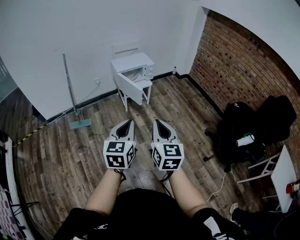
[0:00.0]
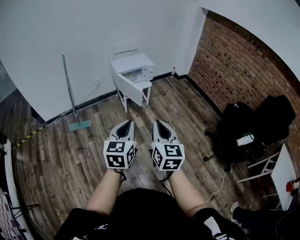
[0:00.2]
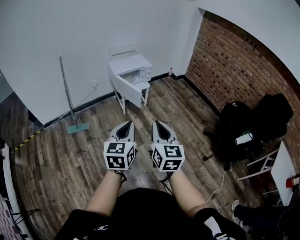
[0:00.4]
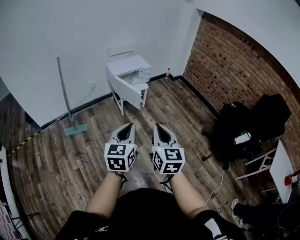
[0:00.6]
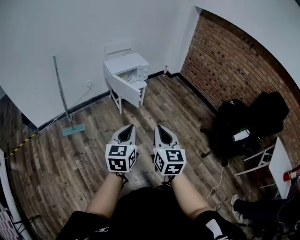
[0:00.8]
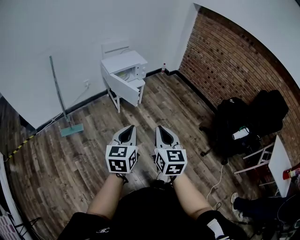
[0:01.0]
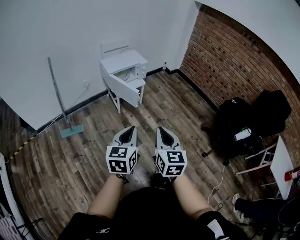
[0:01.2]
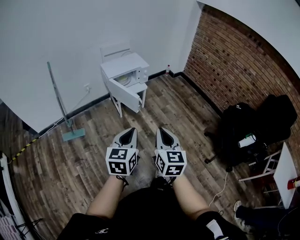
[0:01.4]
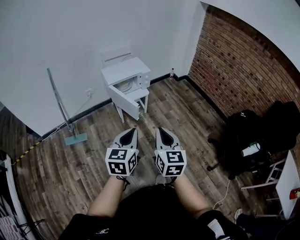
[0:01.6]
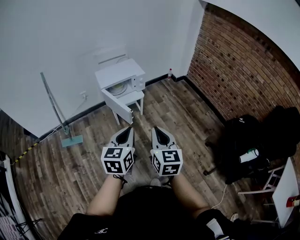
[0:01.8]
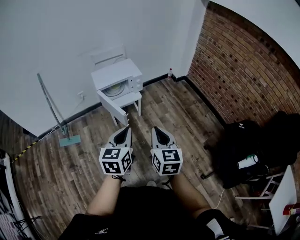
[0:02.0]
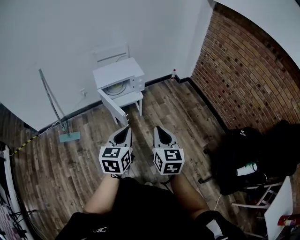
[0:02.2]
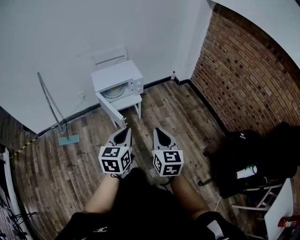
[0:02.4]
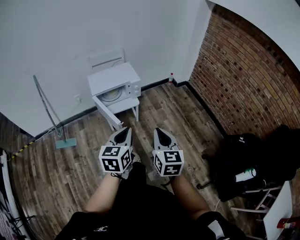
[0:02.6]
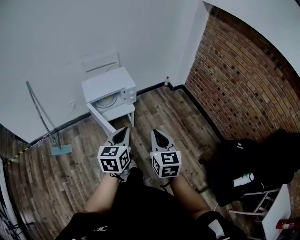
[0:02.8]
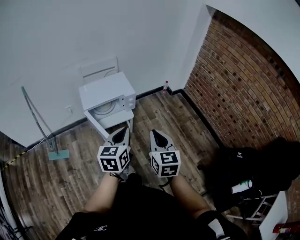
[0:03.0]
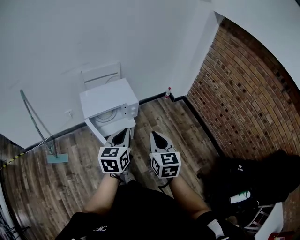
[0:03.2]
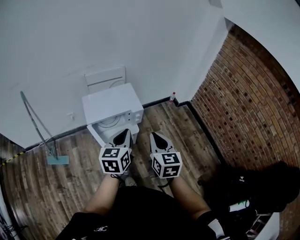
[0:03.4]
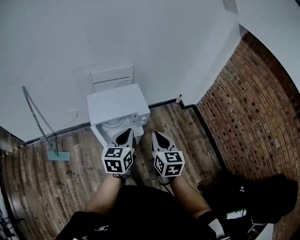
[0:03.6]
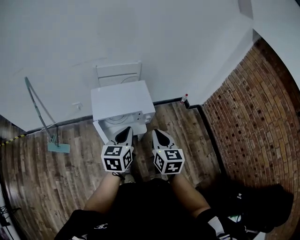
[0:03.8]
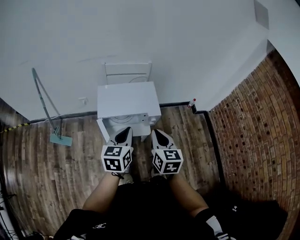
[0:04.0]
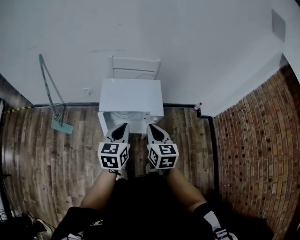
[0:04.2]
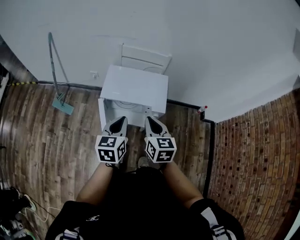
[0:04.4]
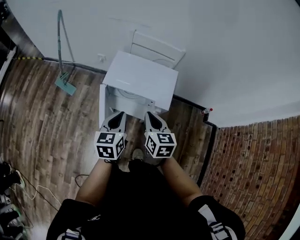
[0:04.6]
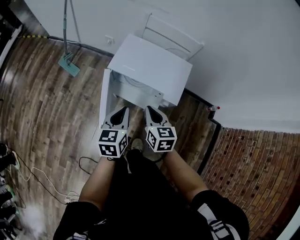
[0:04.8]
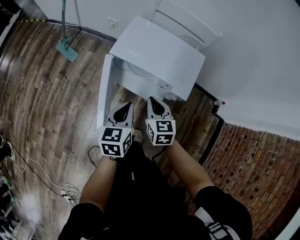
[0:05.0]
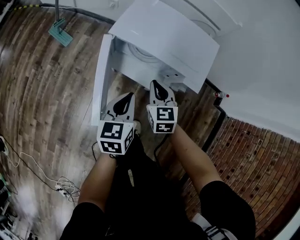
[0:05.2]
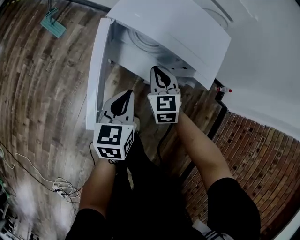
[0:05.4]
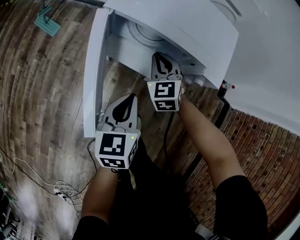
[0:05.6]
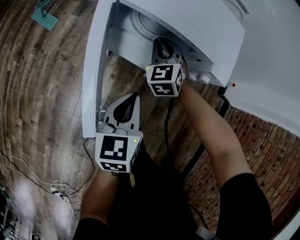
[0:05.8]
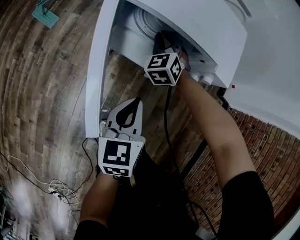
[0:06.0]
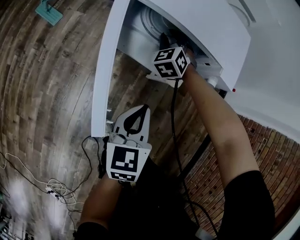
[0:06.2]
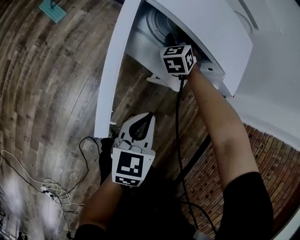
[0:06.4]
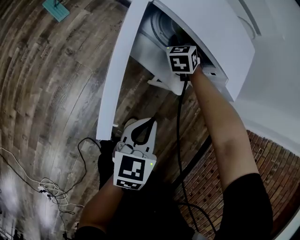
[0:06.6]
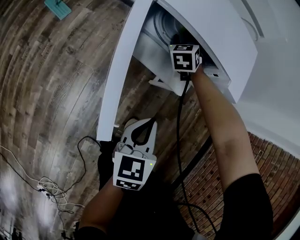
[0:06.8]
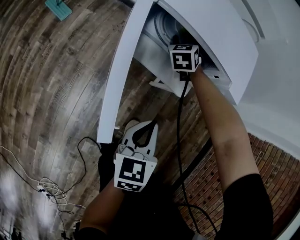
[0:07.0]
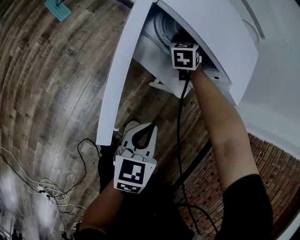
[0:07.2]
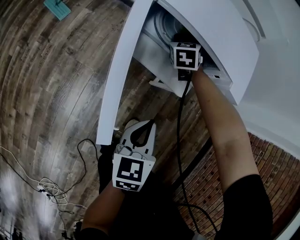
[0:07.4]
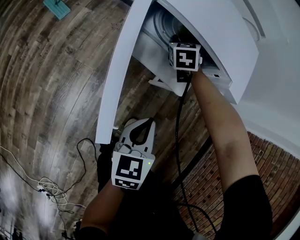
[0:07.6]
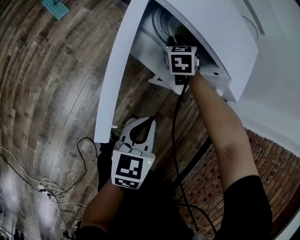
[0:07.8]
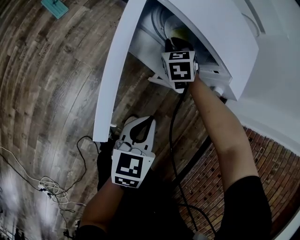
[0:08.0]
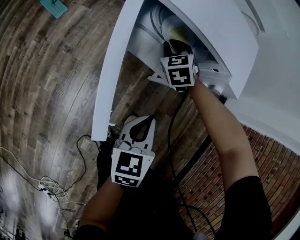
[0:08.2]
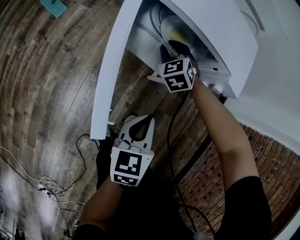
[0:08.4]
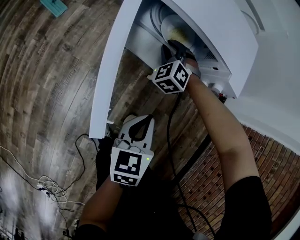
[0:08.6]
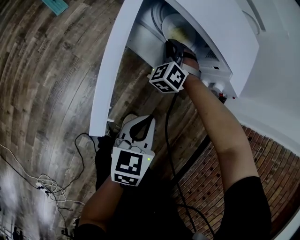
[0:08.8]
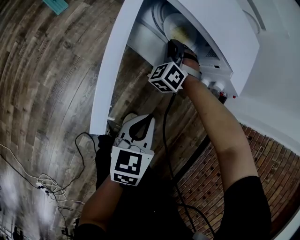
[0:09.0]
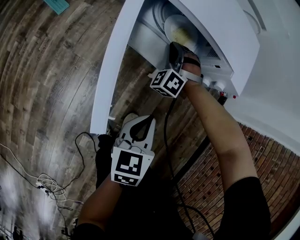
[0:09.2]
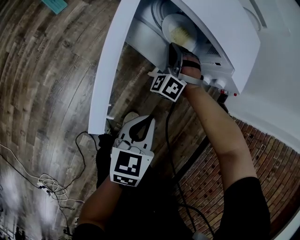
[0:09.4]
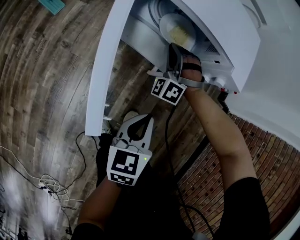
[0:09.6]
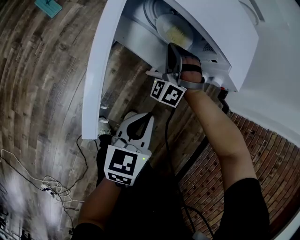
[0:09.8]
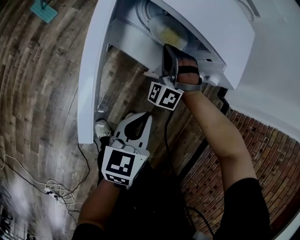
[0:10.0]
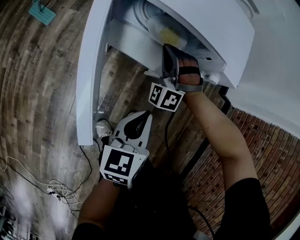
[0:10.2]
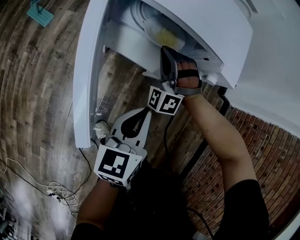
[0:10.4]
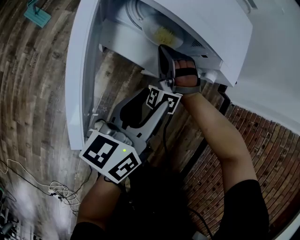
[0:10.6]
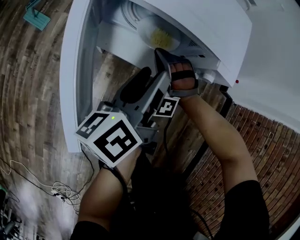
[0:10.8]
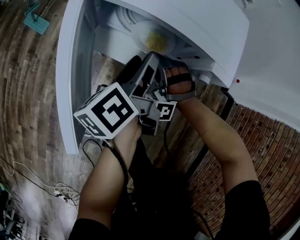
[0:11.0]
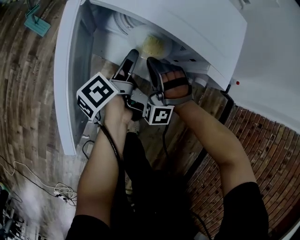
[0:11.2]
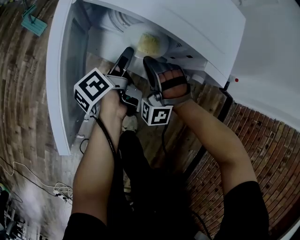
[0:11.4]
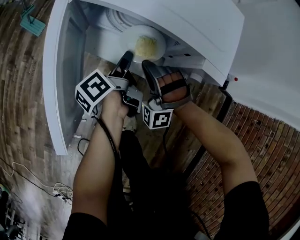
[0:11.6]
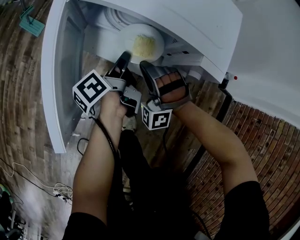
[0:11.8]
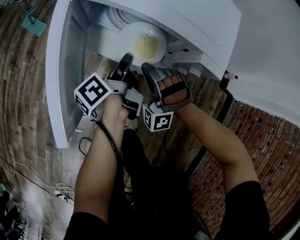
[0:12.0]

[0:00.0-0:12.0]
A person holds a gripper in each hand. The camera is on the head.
0:00.0 to 0:01.6: The two grippers go approximately 20 cm forward.
0:01.6 to 0:03.0: Both grippers travel together forward, roughly 35 cm.
0:03.0 to 0:04.4: The right gripper changes place by about 35 cm, and changes its angle by roughly 30 degrees, while the left gripper moves some 25 cm, and swivels about 30 degrees.
0:04.4 to 0:06.0: The left gripper heads downward, covering approximately 35 cm. Meanwhile the right gripper shifts roughly 40 cm downward and forward, and rolls counterclockwise, seen from behind, by about 60 degrees.
0:06.0 to 0:07.6: The left gripper changes place by approximately 5 cm; the right gripper changes place by about 5 cm, and turns by about 20 degrees.
0:07.6 to 0:09.0: The right gripper goes approximately 5 cm backward, and rotates around the line of its fingers by some 50 degrees, counterclockwise from behind.
0:09.0 to 0:10.4: The left gripper moves about 5 cm. The right gripper moves upward, about 5 cm, and turns by some 20 degrees.
0:10.4 to 0:12.0: The right gripper shifts approximately 5 cm backward. The left gripper is displaced forward and downward by about 15 cm, rolls counterclockwise, seen from behind, by roughly 60 degrees, and opens, then closes again.

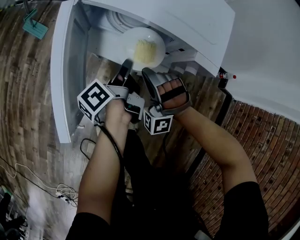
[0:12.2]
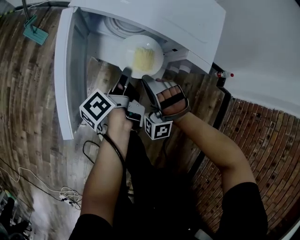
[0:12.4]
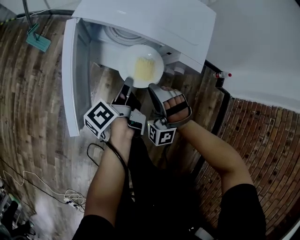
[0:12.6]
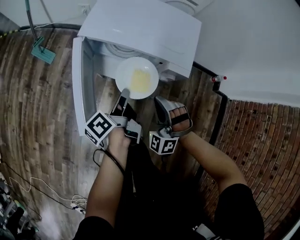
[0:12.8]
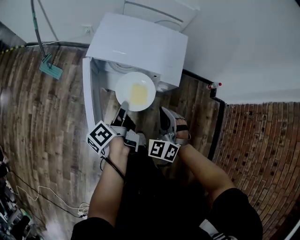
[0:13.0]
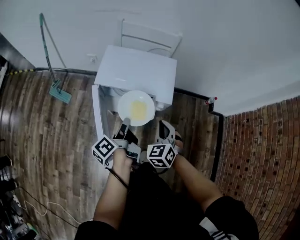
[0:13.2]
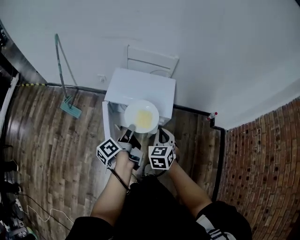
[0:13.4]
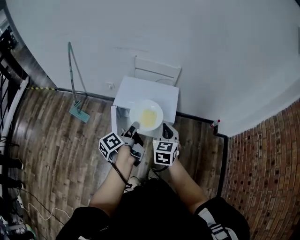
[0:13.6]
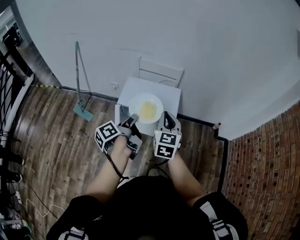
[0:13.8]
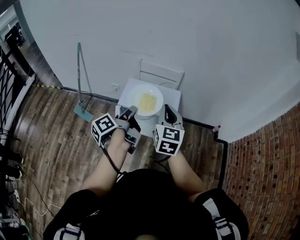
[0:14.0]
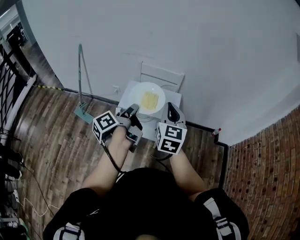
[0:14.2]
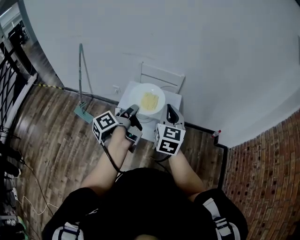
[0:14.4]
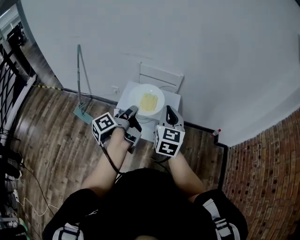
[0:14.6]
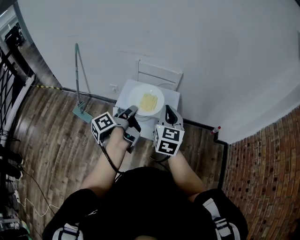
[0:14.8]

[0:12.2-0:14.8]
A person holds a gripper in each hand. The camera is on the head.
0:12.2 to 0:13.4: The two grippers go some 30 cm upward. The right gripper rotates around the line of its fingers by about 80 degrees, clockwise from behind.
0:13.4 to 0:14.8: The two grippers go some 15 cm upward. The right gripper turns by about 30 degrees.

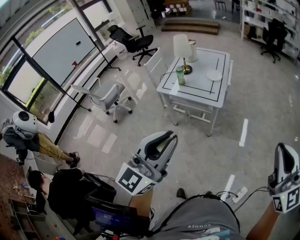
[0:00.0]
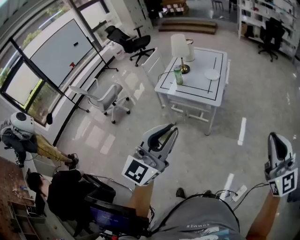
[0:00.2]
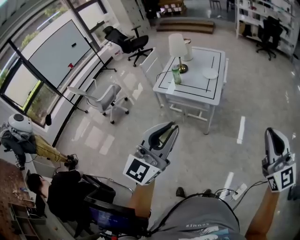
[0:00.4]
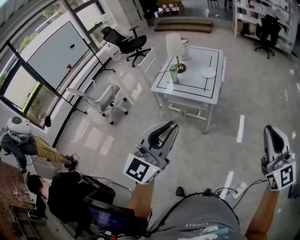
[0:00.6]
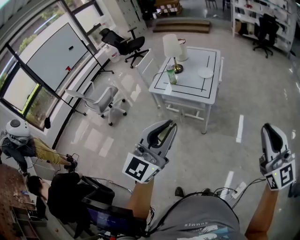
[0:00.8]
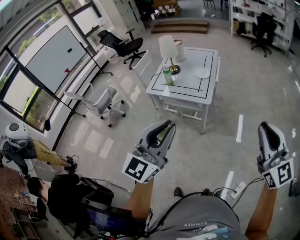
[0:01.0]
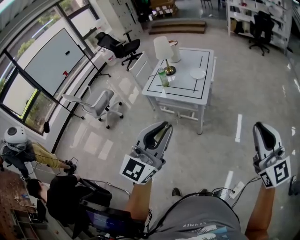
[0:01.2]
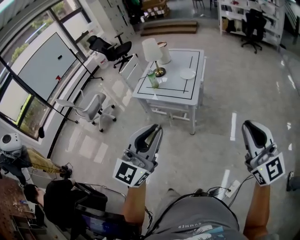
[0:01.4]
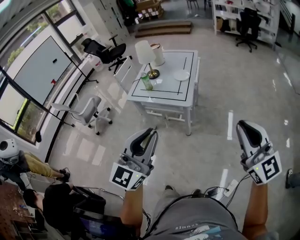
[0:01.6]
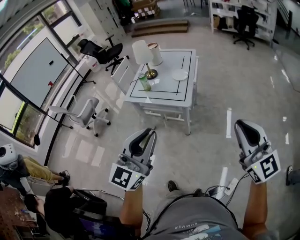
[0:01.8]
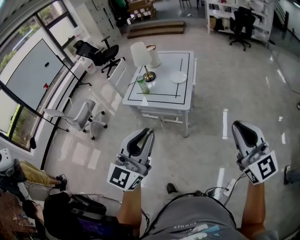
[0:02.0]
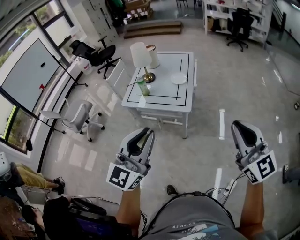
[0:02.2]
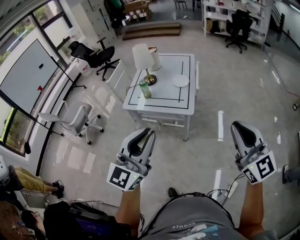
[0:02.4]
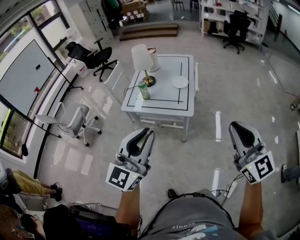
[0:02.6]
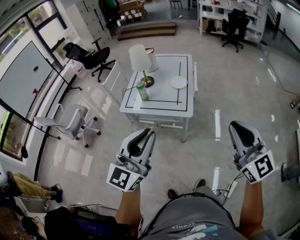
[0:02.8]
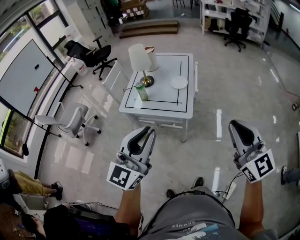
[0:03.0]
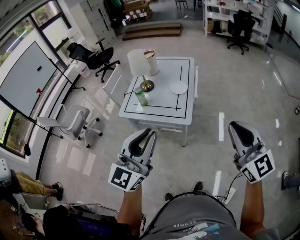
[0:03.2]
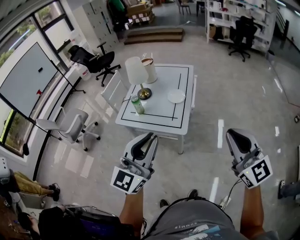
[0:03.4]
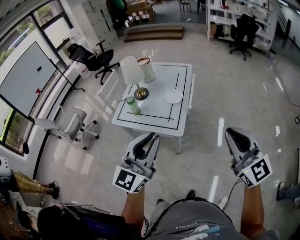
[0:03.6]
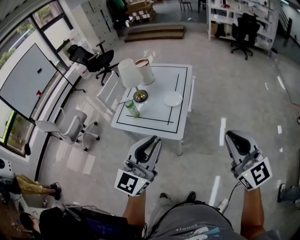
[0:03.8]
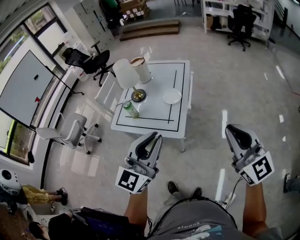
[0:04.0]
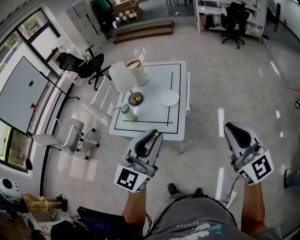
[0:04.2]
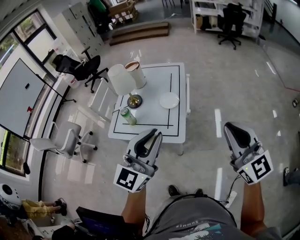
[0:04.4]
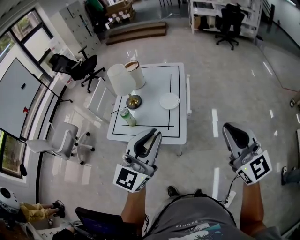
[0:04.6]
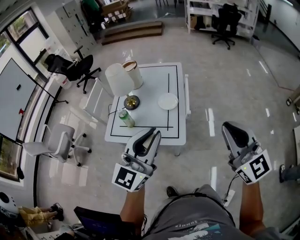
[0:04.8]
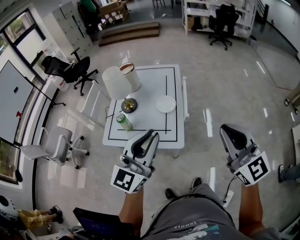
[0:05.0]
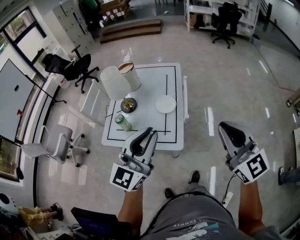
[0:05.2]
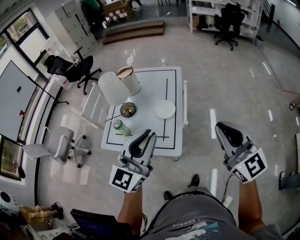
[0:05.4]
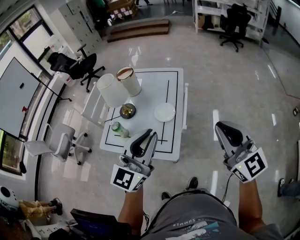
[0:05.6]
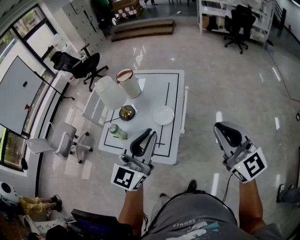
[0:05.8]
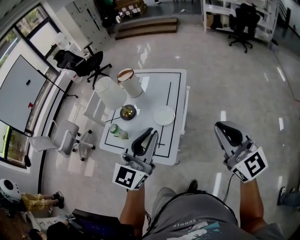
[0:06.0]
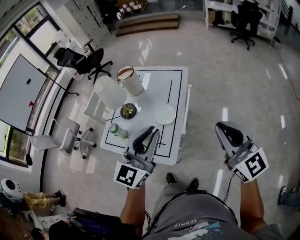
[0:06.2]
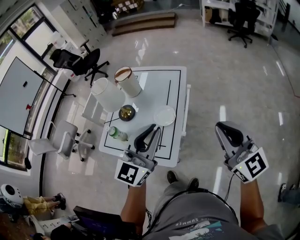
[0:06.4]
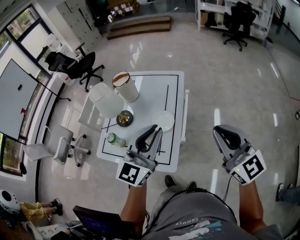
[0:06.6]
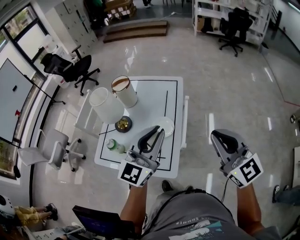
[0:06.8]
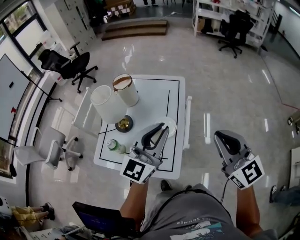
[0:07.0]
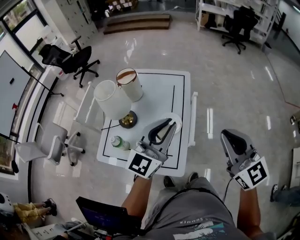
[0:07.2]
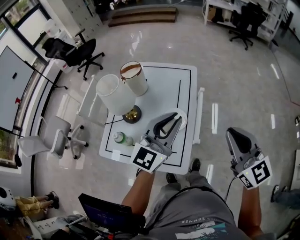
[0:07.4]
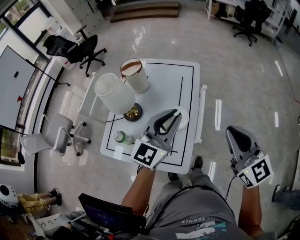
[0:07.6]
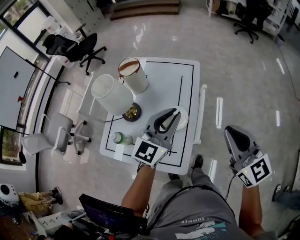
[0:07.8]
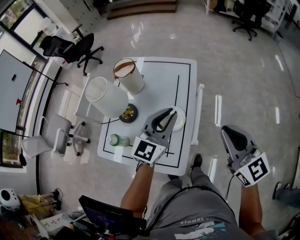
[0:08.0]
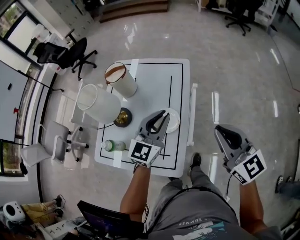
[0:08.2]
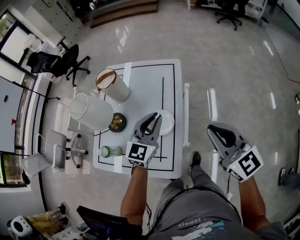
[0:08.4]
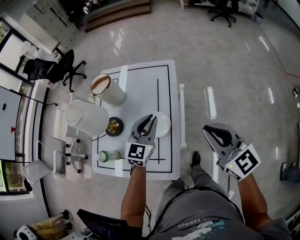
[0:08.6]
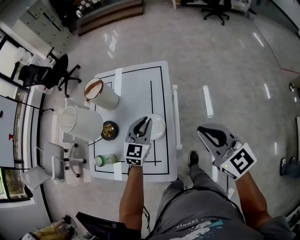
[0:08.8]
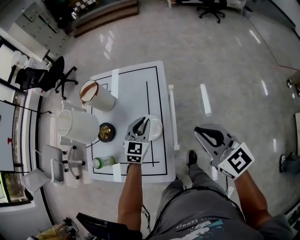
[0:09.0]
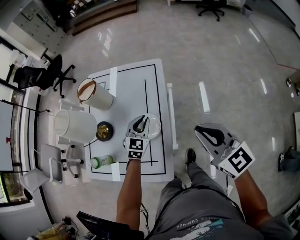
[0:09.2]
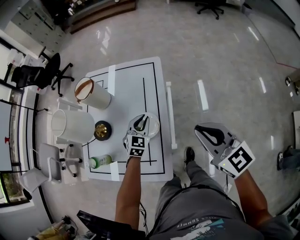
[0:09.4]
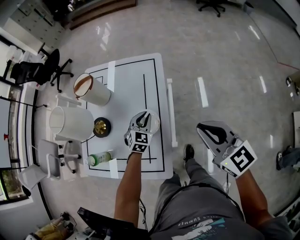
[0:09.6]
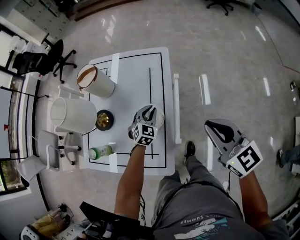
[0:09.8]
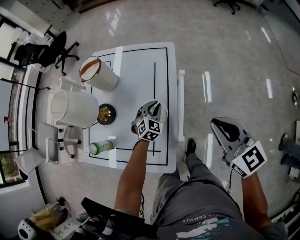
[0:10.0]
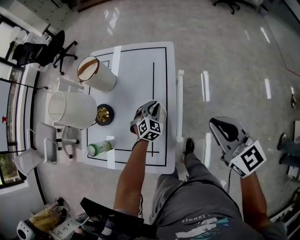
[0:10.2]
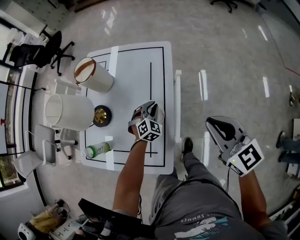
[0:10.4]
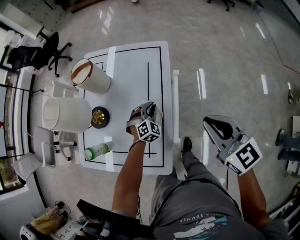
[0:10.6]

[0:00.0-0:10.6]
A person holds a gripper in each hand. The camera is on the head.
0:00.0 to 0:01.6: The left gripper goes some 10 cm to the right. Meanwhile the right gripper travels forward, downward and to the right by about 10 cm.
0:01.6 to 0:03.0: The grippers both shift forward and to the left by some 15 cm.
0:03.0 to 0:04.6: The grippers both shift forward by about 20 cm.
0:04.6 to 0:06.0: The two grippers go approximately 20 cm forward and to the right.
0:06.0 to 0:07.6: The right gripper shifts about 15 cm forward, to the left and downward; the left gripper shifts some 20 cm forward and downward.
0:07.6 to 0:09.0: The left gripper is displaced downward and forward by approximately 25 cm, and changes its angle by some 30 degrees, while the right gripper is displaced downward by about 5 cm.
0:09.0 to 0:10.6: The right gripper moves about 5 cm; the left gripper travels downward by approximately 15 cm, and changes its angle by approximately 40 degrees.
